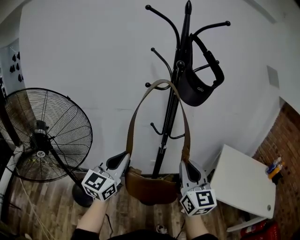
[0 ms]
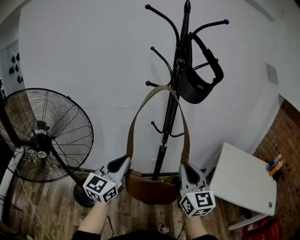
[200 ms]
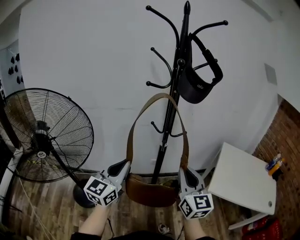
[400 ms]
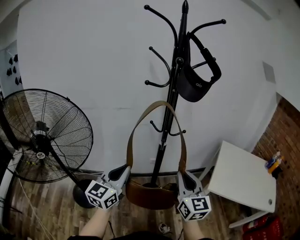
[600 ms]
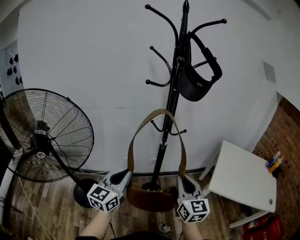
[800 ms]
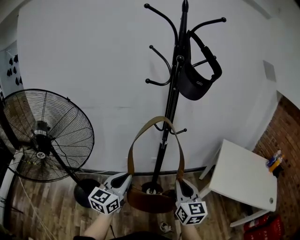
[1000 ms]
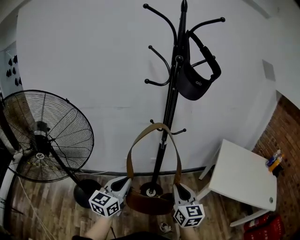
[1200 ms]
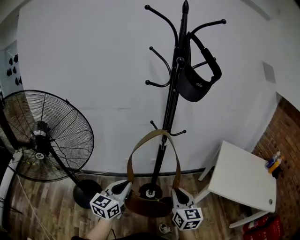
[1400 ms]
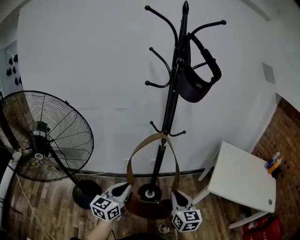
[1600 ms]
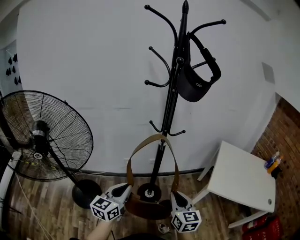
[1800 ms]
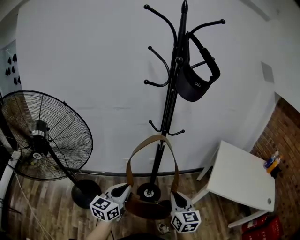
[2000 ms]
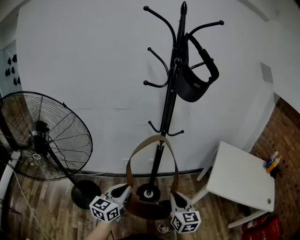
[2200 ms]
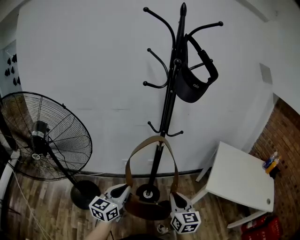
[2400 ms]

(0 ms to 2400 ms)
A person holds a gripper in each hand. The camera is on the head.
0 ms - 1200 ms: The grippers both shift downward by approximately 15 cm.
1200 ms - 2400 ms: The grippers move only a little.

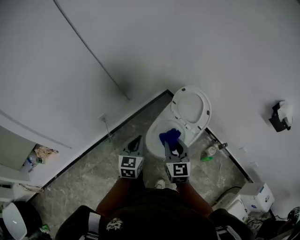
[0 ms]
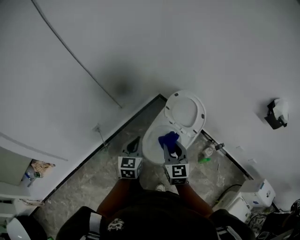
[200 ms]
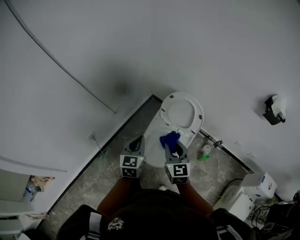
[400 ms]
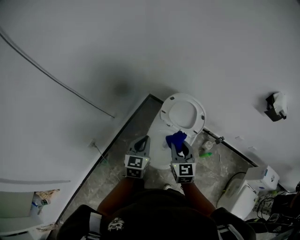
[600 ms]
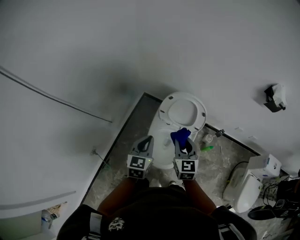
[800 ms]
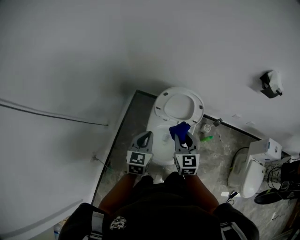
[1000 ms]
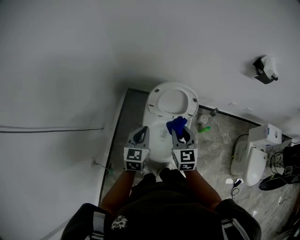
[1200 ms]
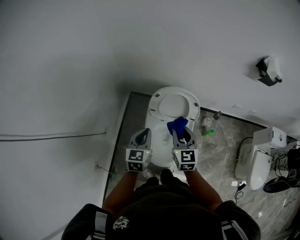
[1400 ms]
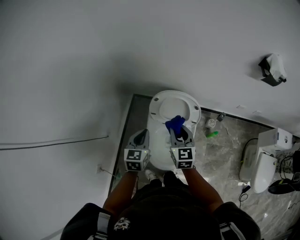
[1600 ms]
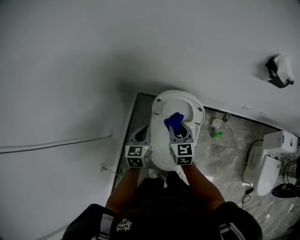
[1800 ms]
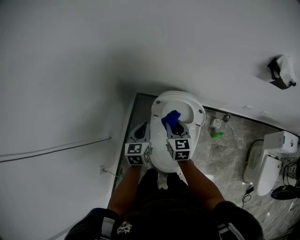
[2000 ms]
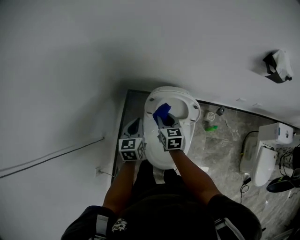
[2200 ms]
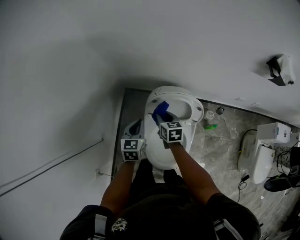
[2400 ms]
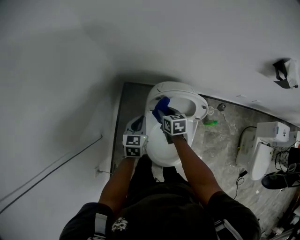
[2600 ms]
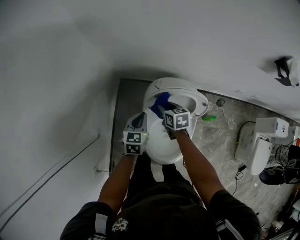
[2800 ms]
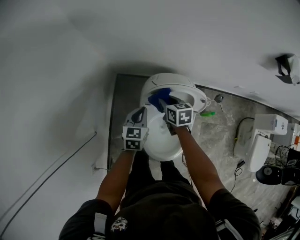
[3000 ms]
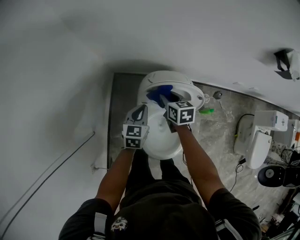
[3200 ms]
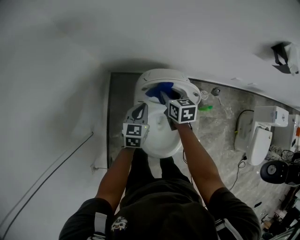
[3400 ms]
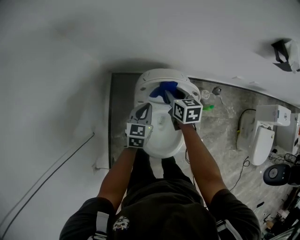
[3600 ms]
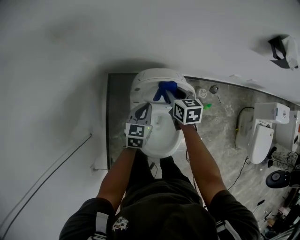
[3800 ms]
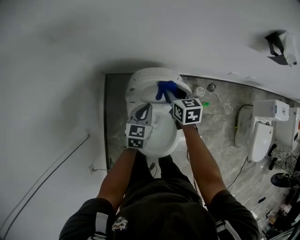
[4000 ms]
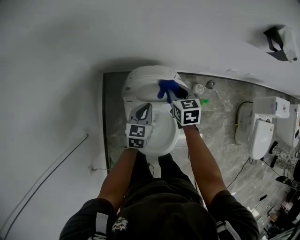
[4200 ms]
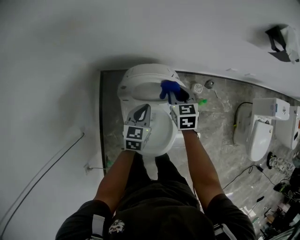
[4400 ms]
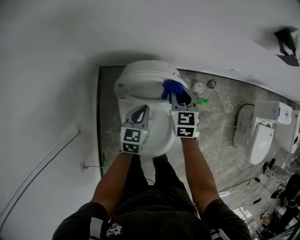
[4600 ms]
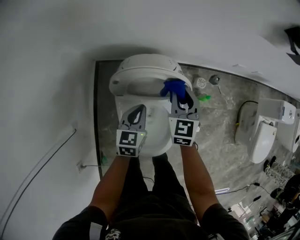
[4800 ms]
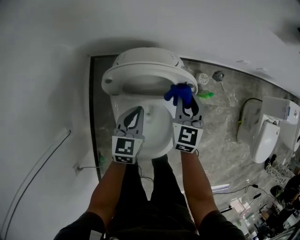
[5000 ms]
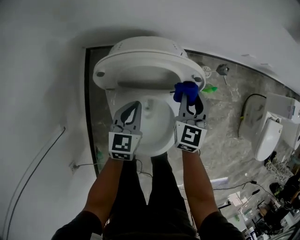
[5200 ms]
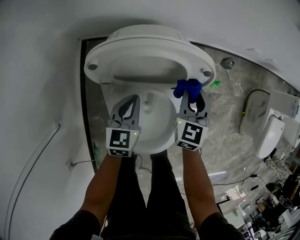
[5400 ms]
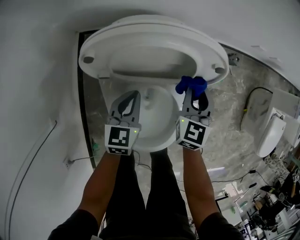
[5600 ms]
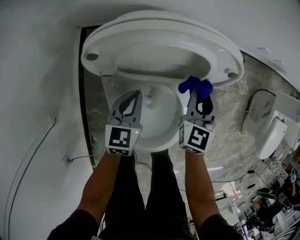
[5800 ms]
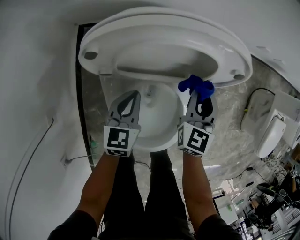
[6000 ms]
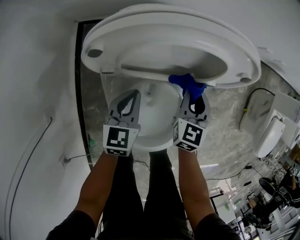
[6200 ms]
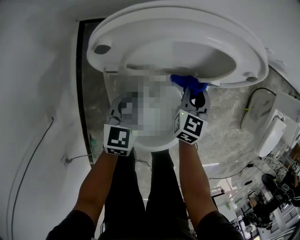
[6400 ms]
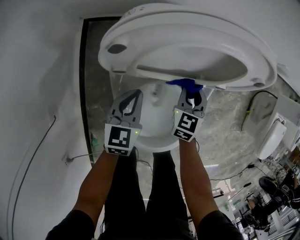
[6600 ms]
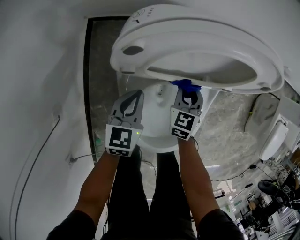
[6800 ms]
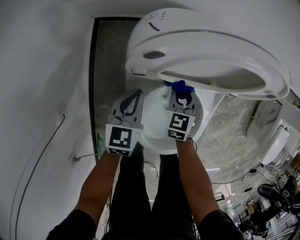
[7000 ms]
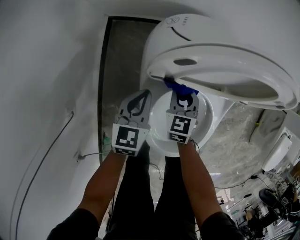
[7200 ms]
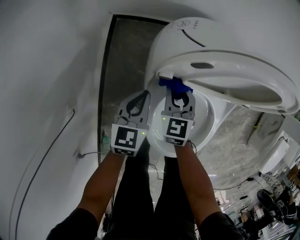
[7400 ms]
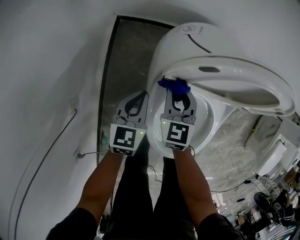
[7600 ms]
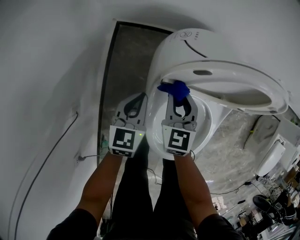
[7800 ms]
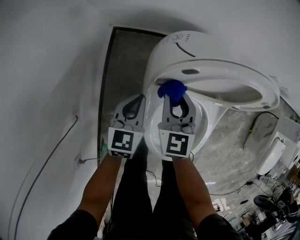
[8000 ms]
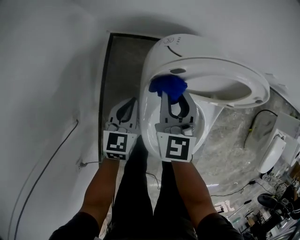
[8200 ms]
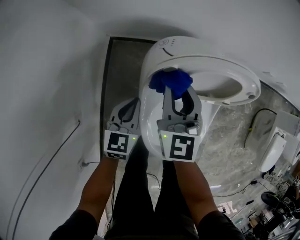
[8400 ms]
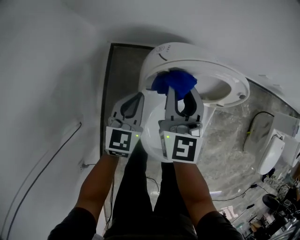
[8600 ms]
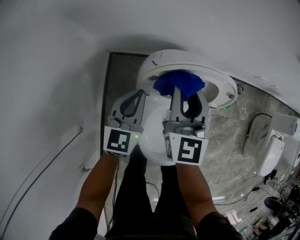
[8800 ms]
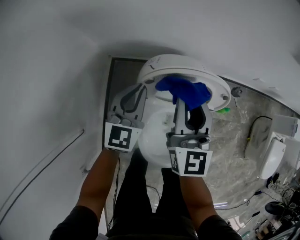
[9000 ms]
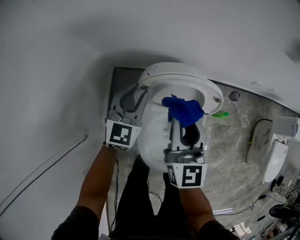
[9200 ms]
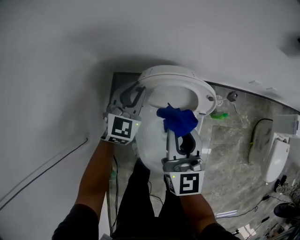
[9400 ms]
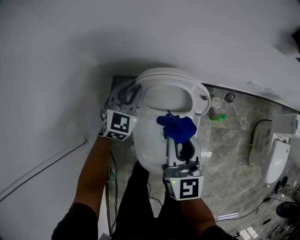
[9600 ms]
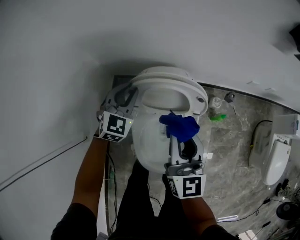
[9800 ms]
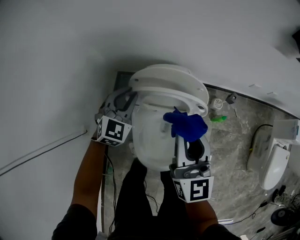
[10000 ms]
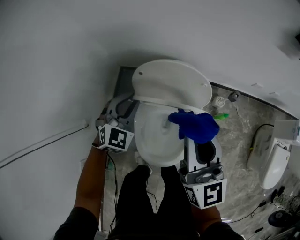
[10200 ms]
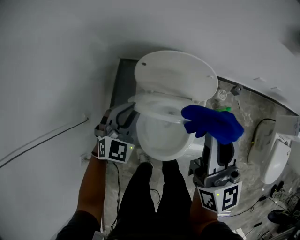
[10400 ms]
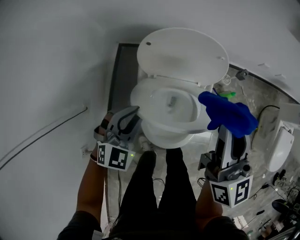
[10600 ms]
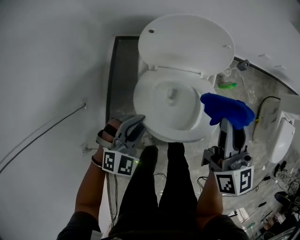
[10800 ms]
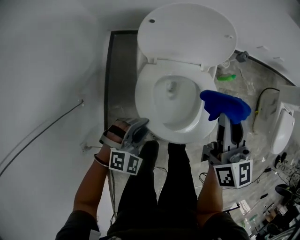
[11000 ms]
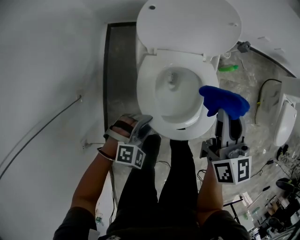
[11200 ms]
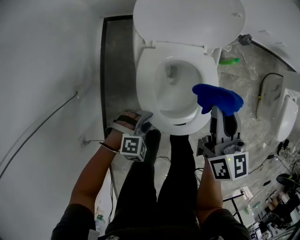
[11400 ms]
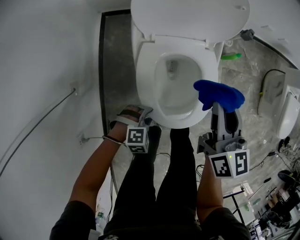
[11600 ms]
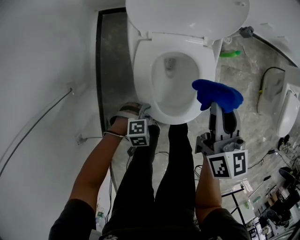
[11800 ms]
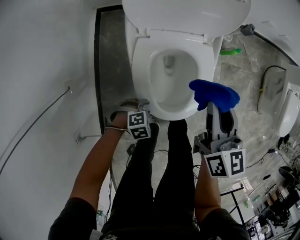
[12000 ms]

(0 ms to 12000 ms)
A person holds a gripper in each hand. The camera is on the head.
0 ms - 1600 ms: The right gripper ends up about 25 cm from where it was, and swivels about 30 degrees; the left gripper ends up roughly 30 cm from where it was, and swivels some 30 degrees.
1600 ms - 3000 ms: The left gripper goes about 20 cm forward and downward. The right gripper goes some 25 cm downward and forward, and changes its angle by roughly 30 degrees.
3000 ms - 4400 ms: The grippers both shift to the right by about 15 cm. The right gripper changes its angle by approximately 20 degrees.
4400 ms - 6000 ms: The two grippers go roughly 20 cm downward. The right gripper swivels roughly 20 degrees.
6000 ms - 7600 ms: The left gripper moves to the left, approximately 15 cm. The right gripper goes some 25 cm to the left, and swivels roughly 20 degrees.
7600 ms - 9000 ms: The right gripper heads upward, covering about 30 cm, and points its fingers some 30 degrees further upward. The left gripper travels upward and forward by about 25 cm, and turns by about 30 degrees.
9000 ms - 10400 ms: The left gripper heads backward, covering approximately 15 cm, and swivels approximately 30 degrees. Meanwhile the right gripper travels backward, to the right and upward by some 20 cm.
10400 ms - 12000 ms: The two grippers go approximately 30 cm downward. The left gripper tilts its fingers approximately 40 degrees downward; the right gripper turns by roughly 30 degrees.

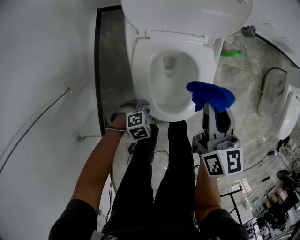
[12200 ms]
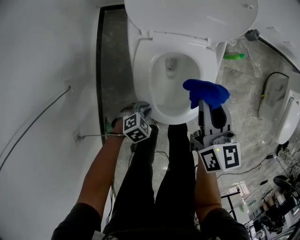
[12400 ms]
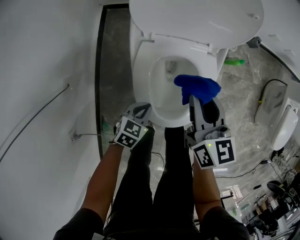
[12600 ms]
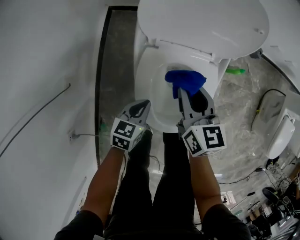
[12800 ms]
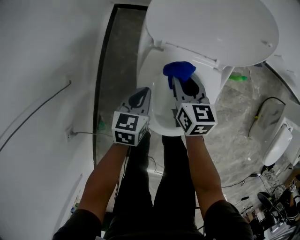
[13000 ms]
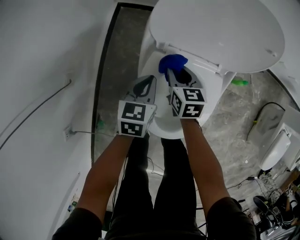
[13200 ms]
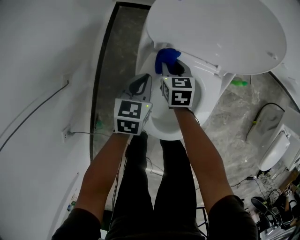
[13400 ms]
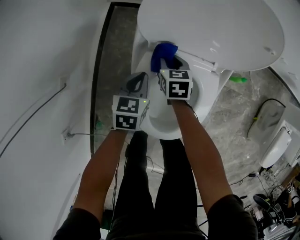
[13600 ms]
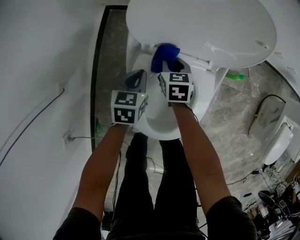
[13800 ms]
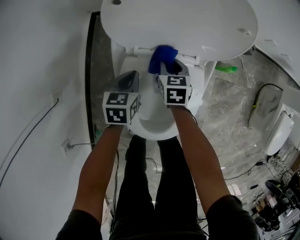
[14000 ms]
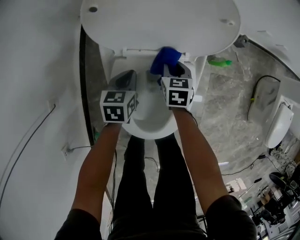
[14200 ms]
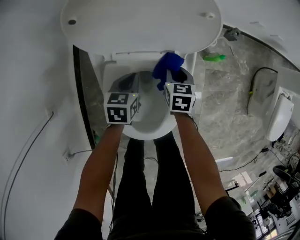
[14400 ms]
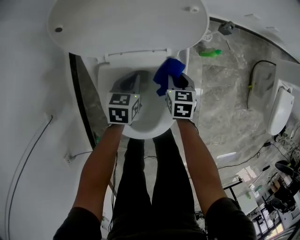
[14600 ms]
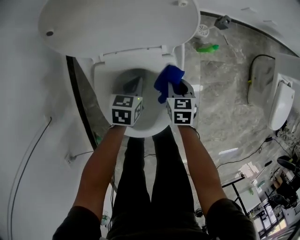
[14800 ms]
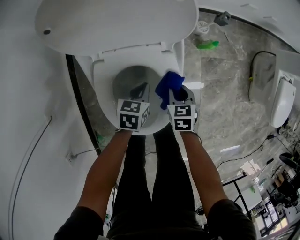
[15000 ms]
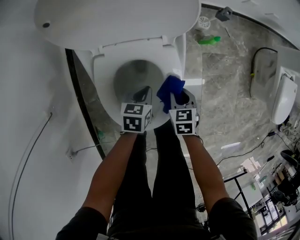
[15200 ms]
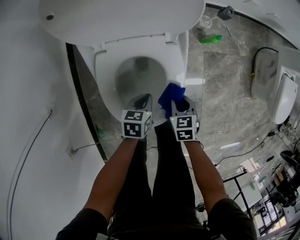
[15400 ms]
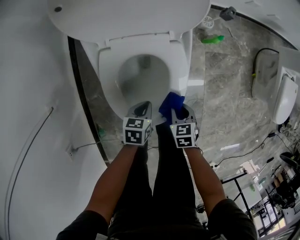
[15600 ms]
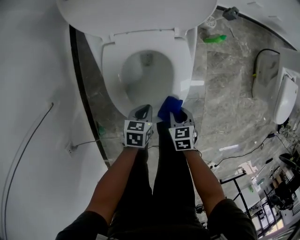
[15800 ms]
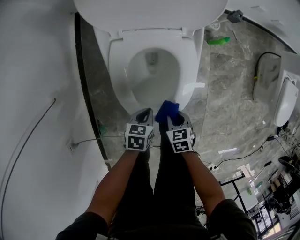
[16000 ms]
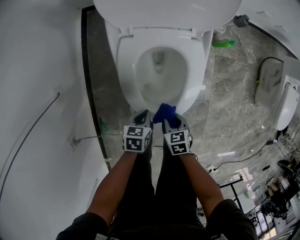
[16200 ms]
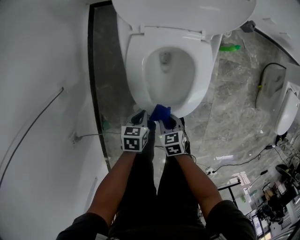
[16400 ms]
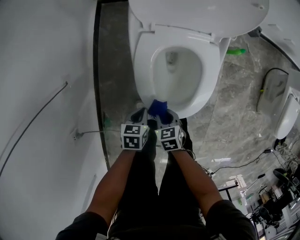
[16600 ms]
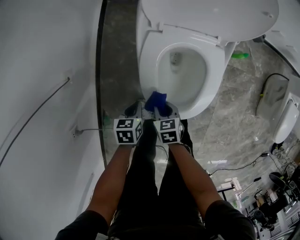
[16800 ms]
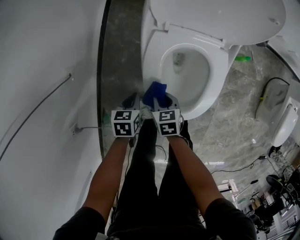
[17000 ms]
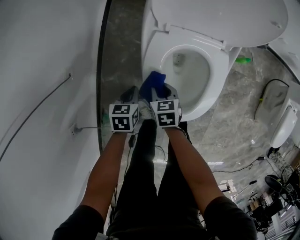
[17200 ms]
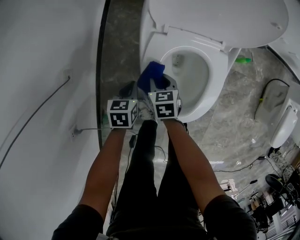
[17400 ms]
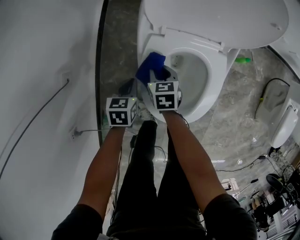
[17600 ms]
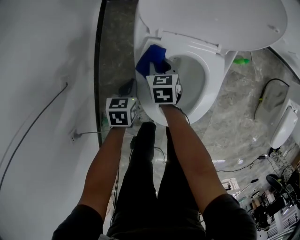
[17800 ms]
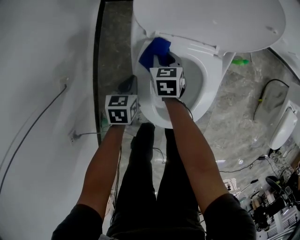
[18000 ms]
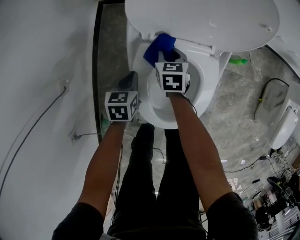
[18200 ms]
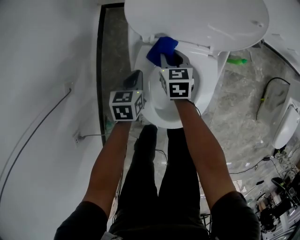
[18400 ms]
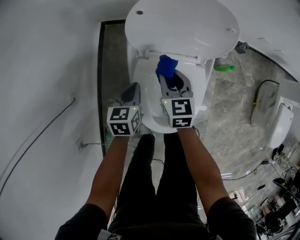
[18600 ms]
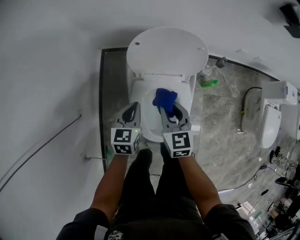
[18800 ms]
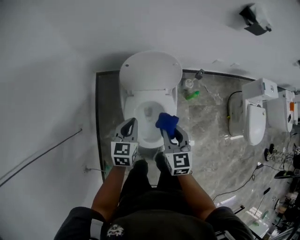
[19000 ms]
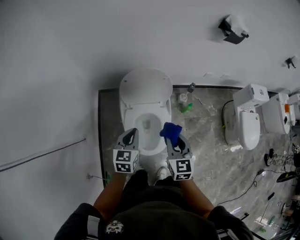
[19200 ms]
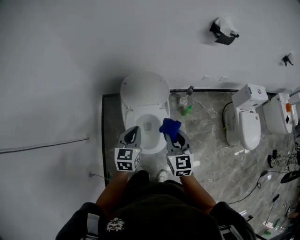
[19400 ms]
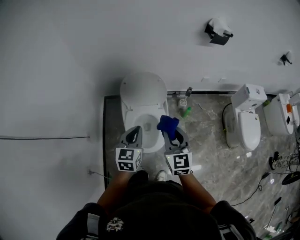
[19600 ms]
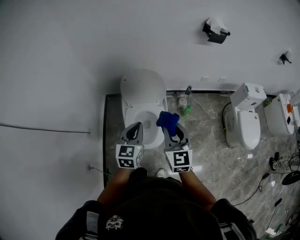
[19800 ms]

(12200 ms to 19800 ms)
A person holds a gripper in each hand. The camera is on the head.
12200 ms - 13800 ms: The left gripper changes place by roughly 25 cm, rolls counterclockwise, seen from behind, by roughly 60 degrees, and closes its fingers. The right gripper moves downward, about 25 cm, and changes its angle by about 30 degrees.
13800 ms - 15200 ms: The left gripper moves to the right, roughly 20 cm, and changes its angle by approximately 20 degrees. The right gripper is displaced to the right and backward by approximately 25 cm.
15200 ms - 16800 ms: The left gripper shifts by about 25 cm. The right gripper changes place by approximately 25 cm.
16800 ms - 18200 ms: The left gripper goes roughly 20 cm forward. Meanwhile the right gripper goes roughly 30 cm forward.
18200 ms - 19800 ms: The left gripper moves upward, some 50 cm, and points its fingers roughly 30 degrees further upward, while the right gripper goes roughly 70 cm upward and backward, and tips its fingers upward by roughly 40 degrees.

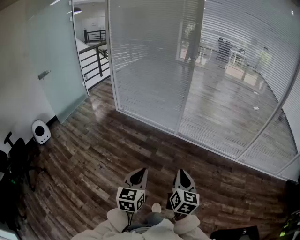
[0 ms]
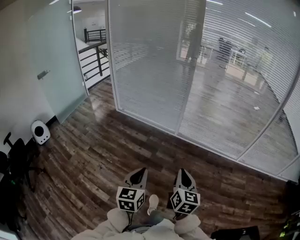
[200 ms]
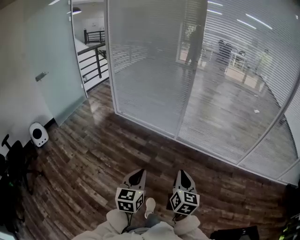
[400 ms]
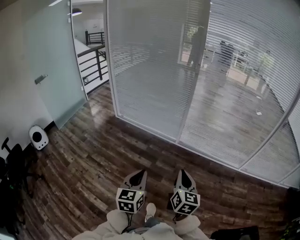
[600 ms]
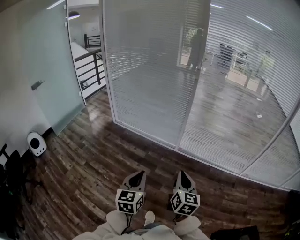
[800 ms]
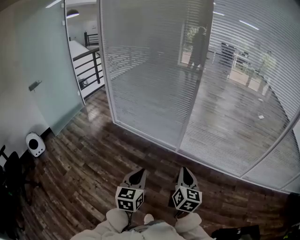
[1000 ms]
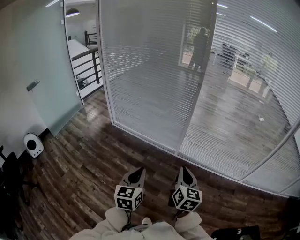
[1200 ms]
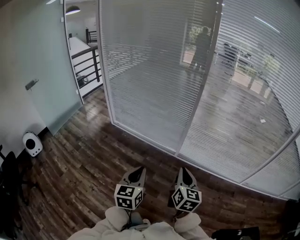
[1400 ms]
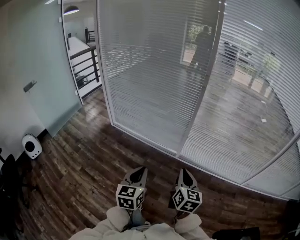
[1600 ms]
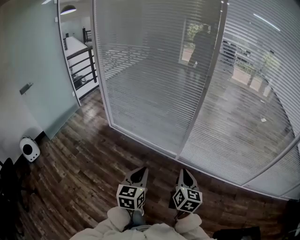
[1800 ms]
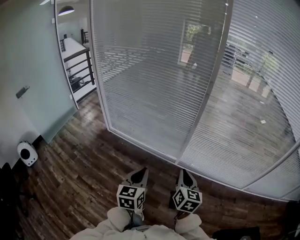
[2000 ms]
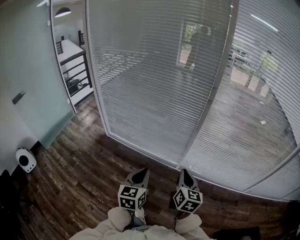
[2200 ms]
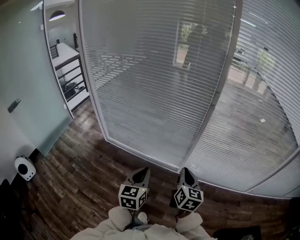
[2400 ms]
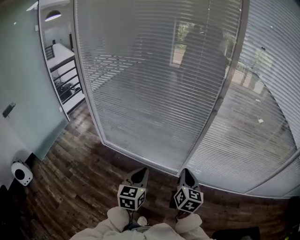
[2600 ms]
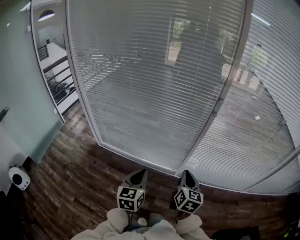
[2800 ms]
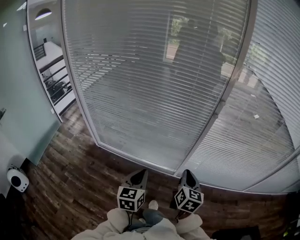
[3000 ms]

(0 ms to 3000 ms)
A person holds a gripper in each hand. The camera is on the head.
0 ms - 1600 ms: The grippers both shift forward by about 40 cm.
1600 ms - 3000 ms: The grippers both shift forward by roughly 30 cm.
